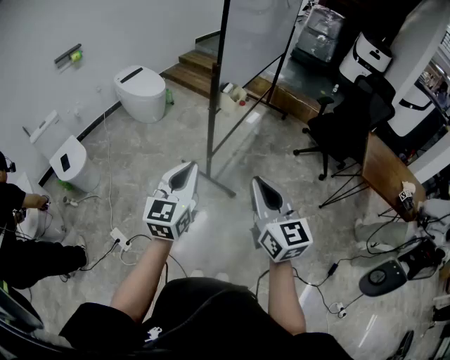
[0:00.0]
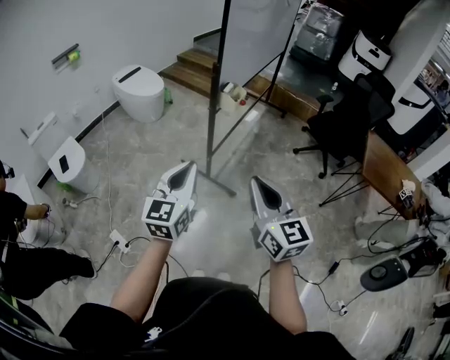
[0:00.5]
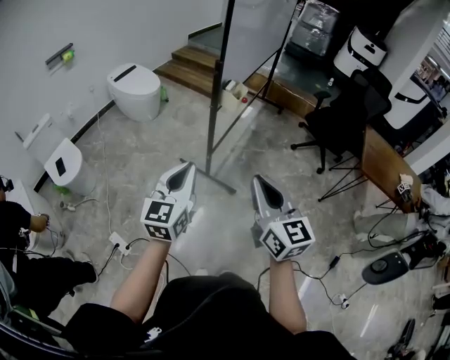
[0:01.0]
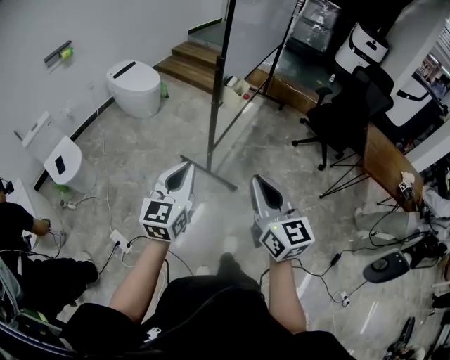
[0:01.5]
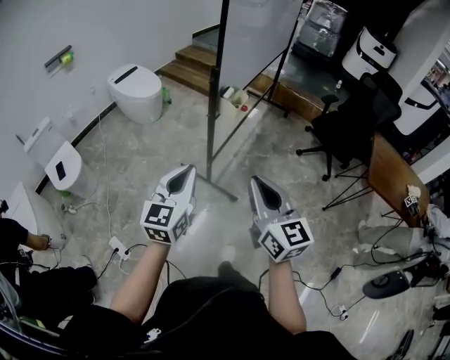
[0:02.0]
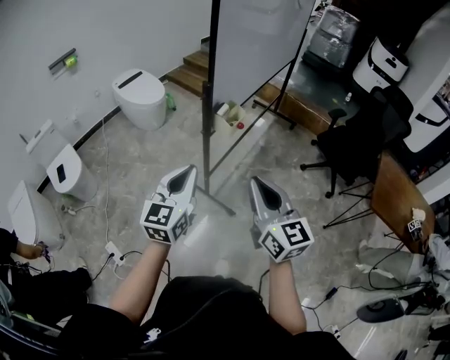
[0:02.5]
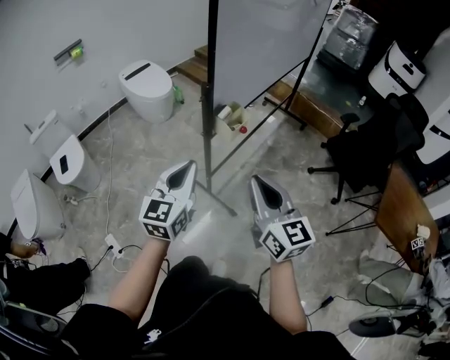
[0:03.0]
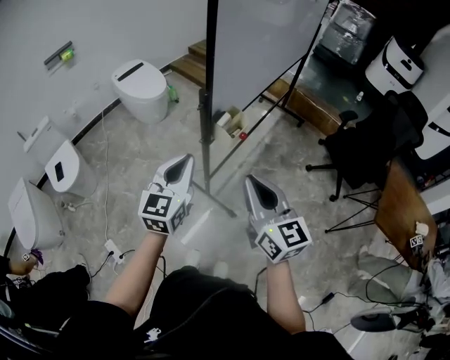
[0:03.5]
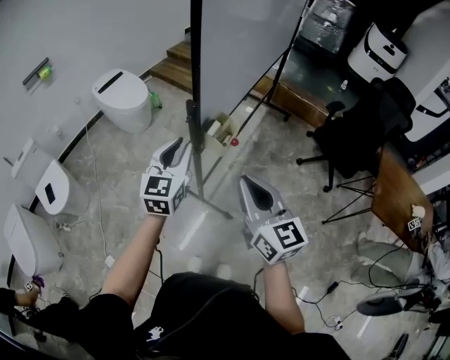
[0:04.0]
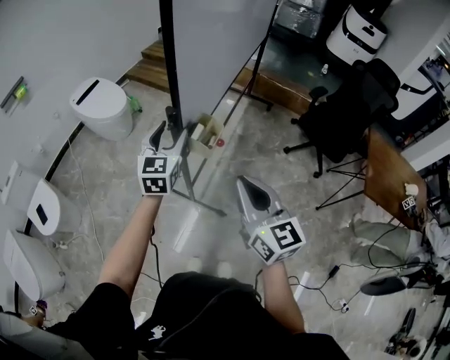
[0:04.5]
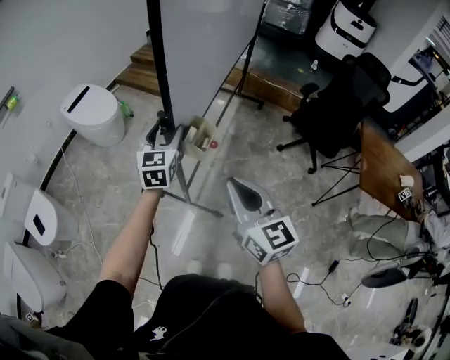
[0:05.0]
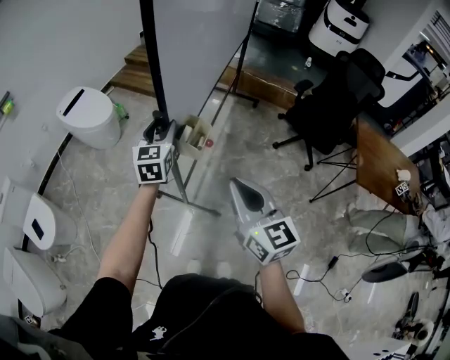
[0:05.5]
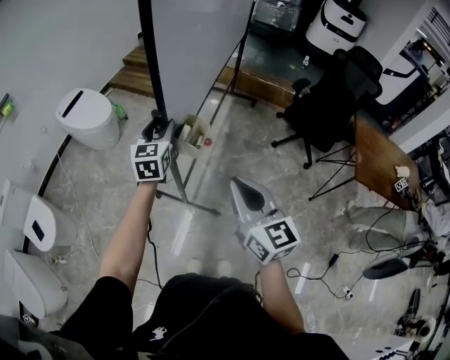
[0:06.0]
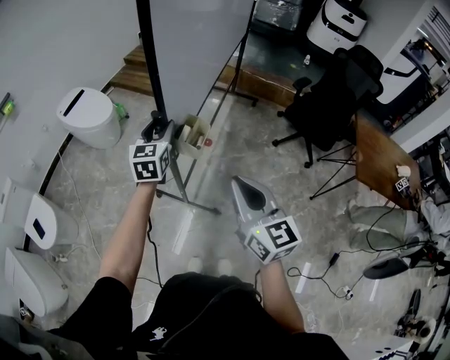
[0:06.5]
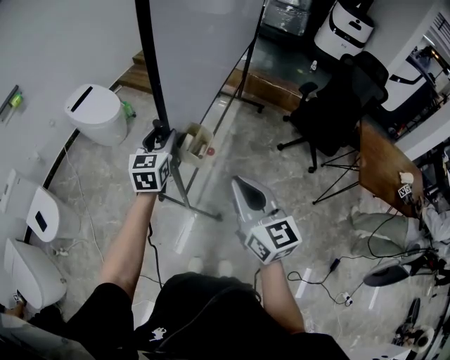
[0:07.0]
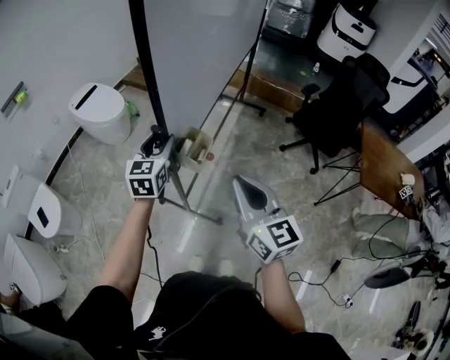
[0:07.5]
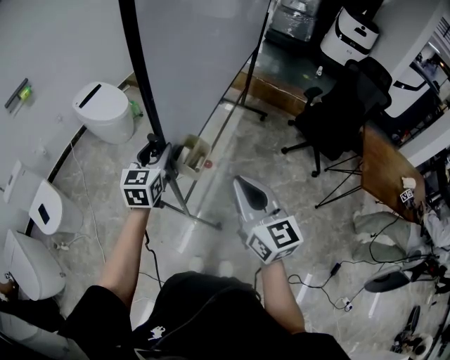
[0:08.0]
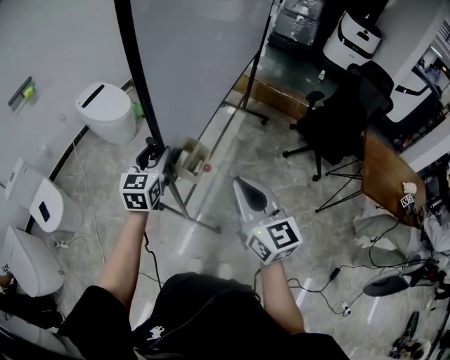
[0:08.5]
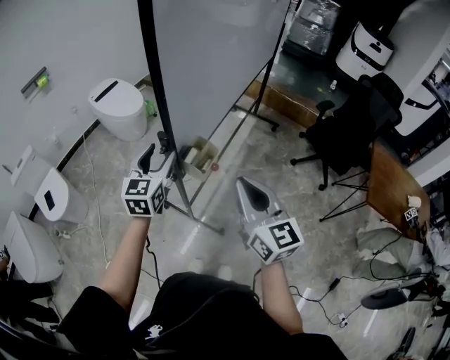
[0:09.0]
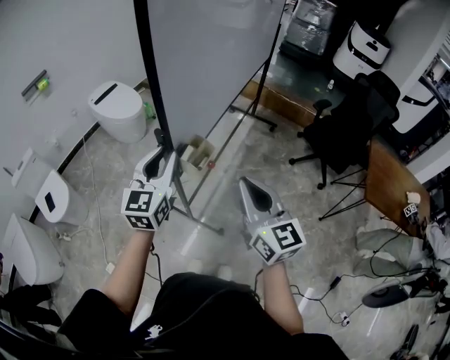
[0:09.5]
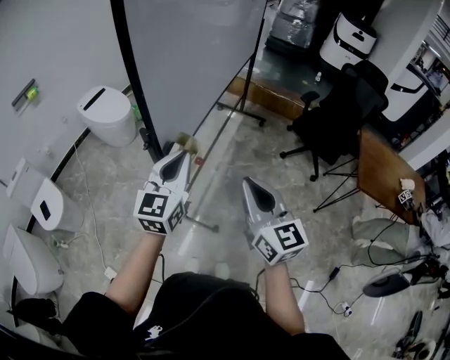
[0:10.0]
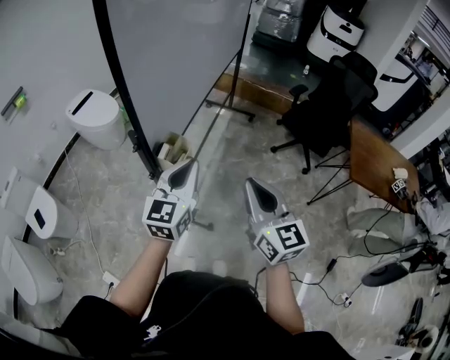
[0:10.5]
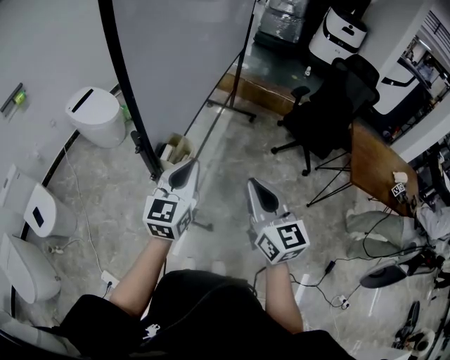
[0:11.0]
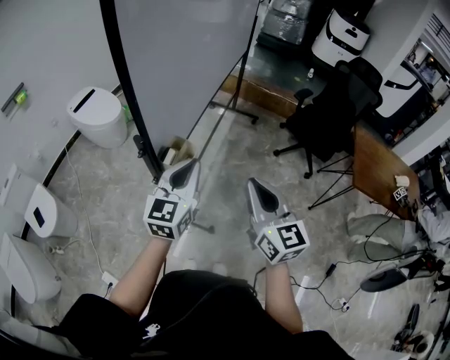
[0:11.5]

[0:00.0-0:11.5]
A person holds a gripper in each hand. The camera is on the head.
0:00.0 to 0:02.0: The grippers both shift forward by about 10 cm.
0:02.0 to 0:04.0: Both grippers move forward, some 25 cm.
0:04.0 to 0:06.0: The left gripper heads forward, covering approximately 10 cm, and opens.
0:06.0 to 0:07.5: The left gripper travels backward by roughly 10 cm.
0:07.5 to 0:09.5: The left gripper travels backward and upward by about 15 cm.
0:09.5 to 0:11.5: The left gripper is displaced to the right by about 10 cm, and closes. The right gripper heads to the right, covering about 5 cm.

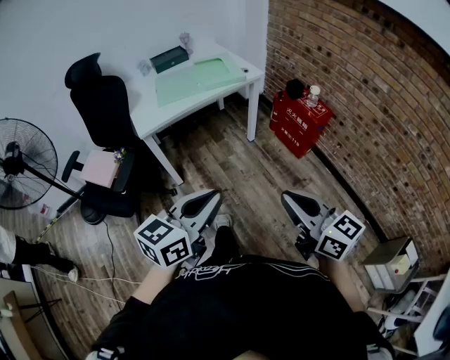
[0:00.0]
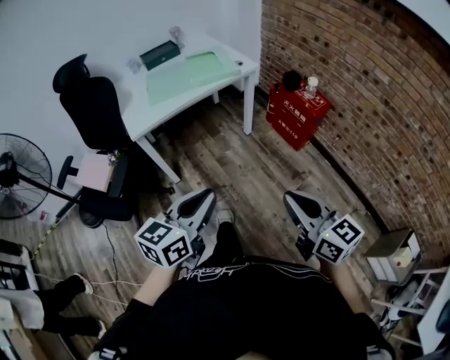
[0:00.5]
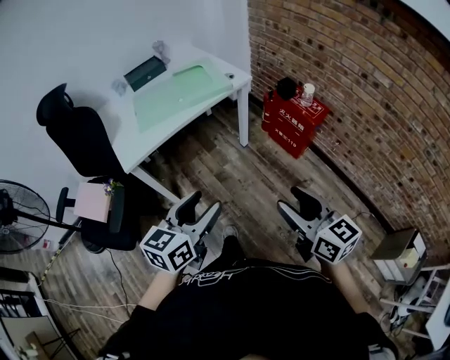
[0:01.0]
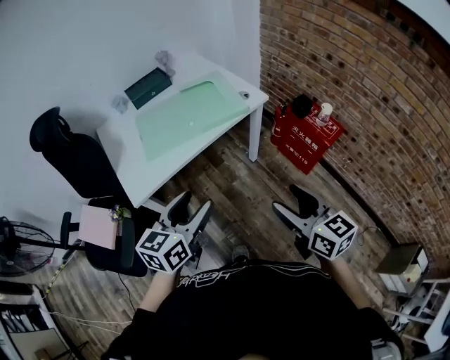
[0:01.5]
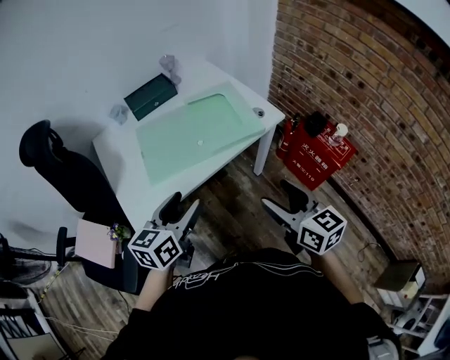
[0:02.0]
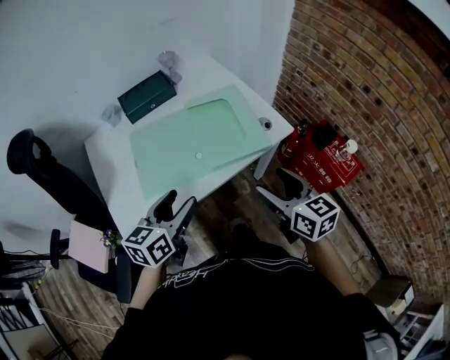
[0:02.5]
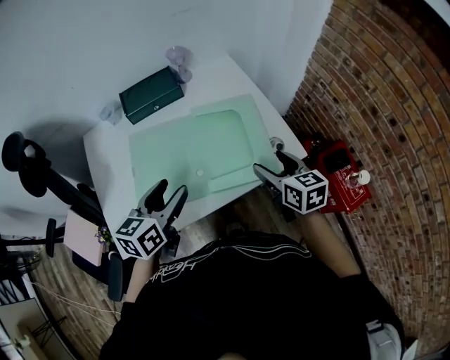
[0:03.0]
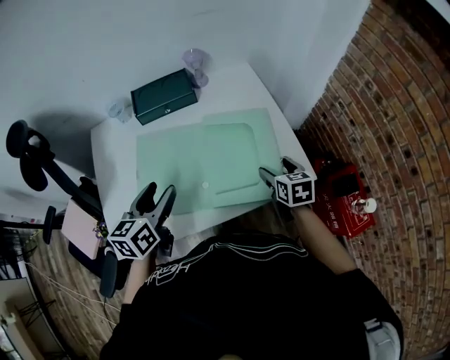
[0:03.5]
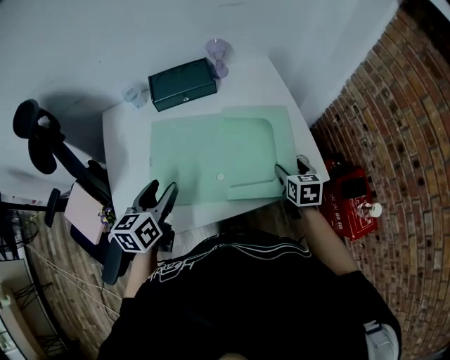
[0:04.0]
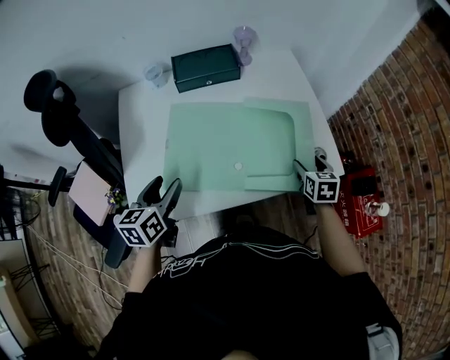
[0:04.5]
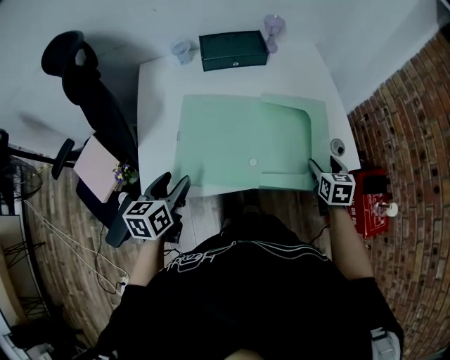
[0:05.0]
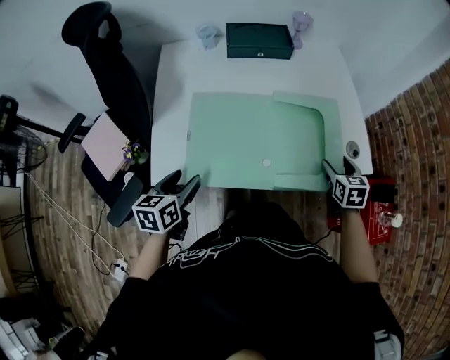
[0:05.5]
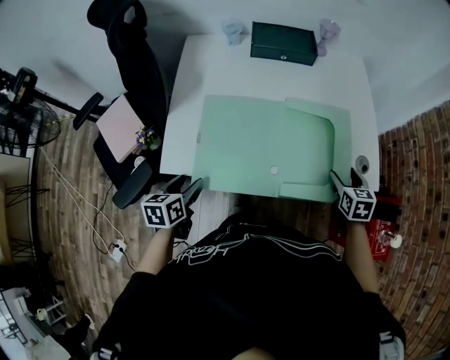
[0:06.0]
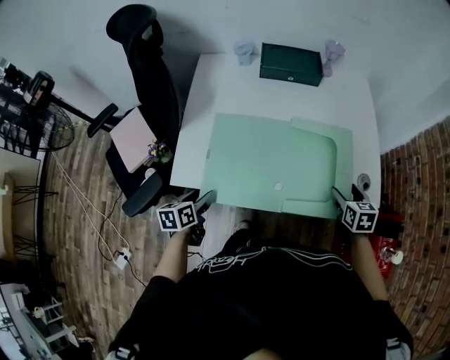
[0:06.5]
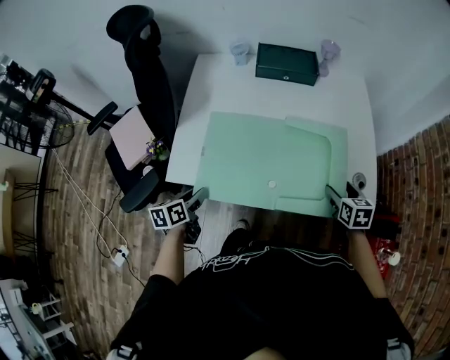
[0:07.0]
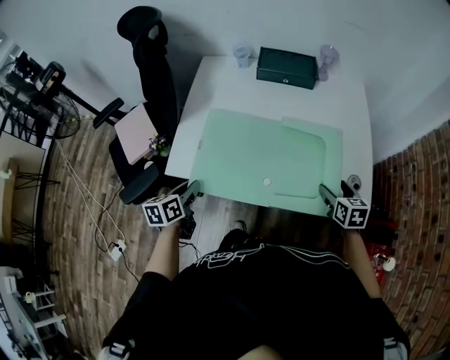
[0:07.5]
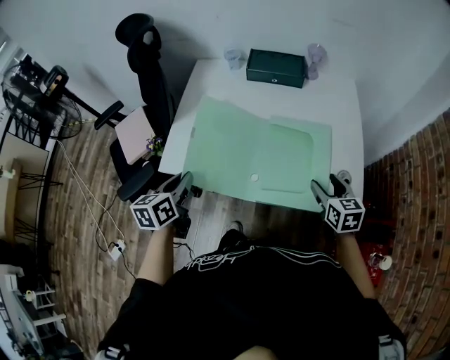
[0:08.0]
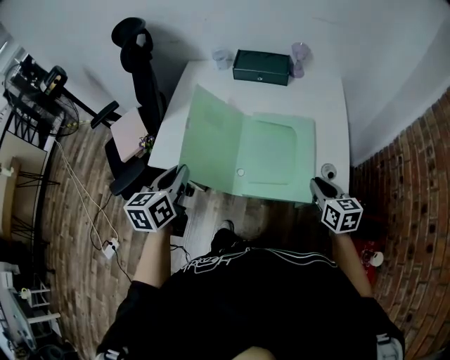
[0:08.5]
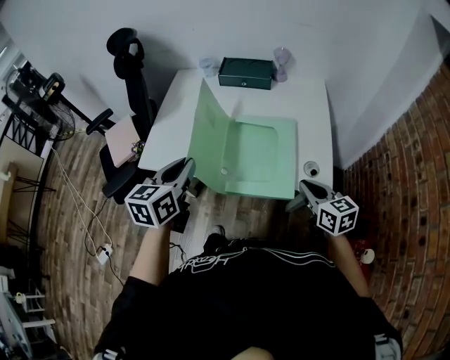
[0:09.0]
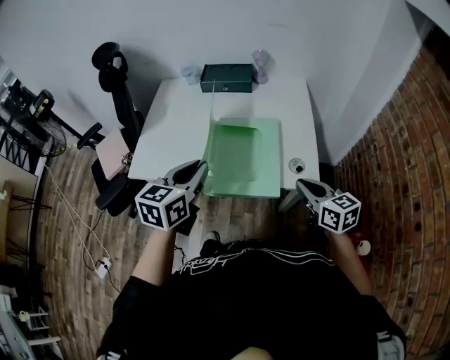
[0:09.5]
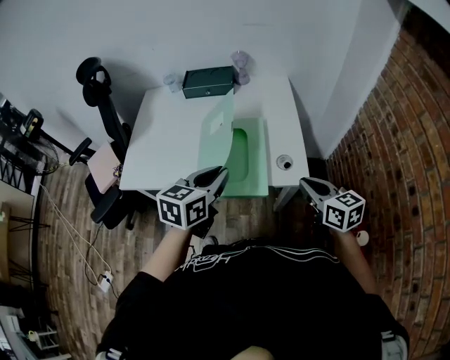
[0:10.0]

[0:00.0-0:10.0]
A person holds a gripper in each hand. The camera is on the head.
0:00.0 to 0:02.0: The pair of grippers is taken forward, some 50 cm. The right gripper opens. The left gripper opens.
0:02.0 to 0:04.0: The right gripper heads forward and downward, covering roughly 40 cm, and points its fingers about 30 degrees further downward; the left gripper shifts about 25 cm forward and to the left, and changes its angle by roughly 30 degrees.
0:04.0 to 0:06.0: The left gripper travels backward, downward and to the left by approximately 25 cm, and turns by roughly 20 degrees, while the right gripper moves backward, about 5 cm.
0:06.0 to 0:08.0: The right gripper is displaced upward by about 5 cm; the left gripper shifts some 15 cm upward and to the right, and closes its fingers.
0:08.0 to 0:10.0: The left gripper is displaced to the right by about 30 cm, and rotates some 30 degrees; the right gripper is displaced to the right, backward and upward by approximately 15 cm, and closes up.

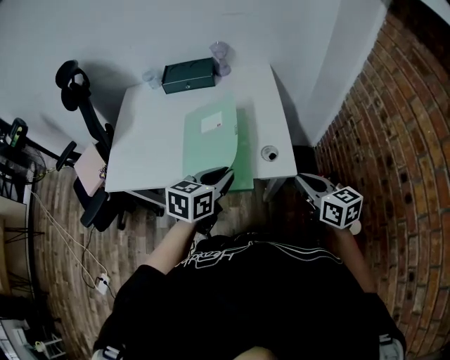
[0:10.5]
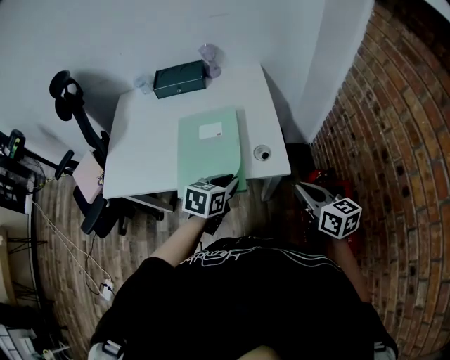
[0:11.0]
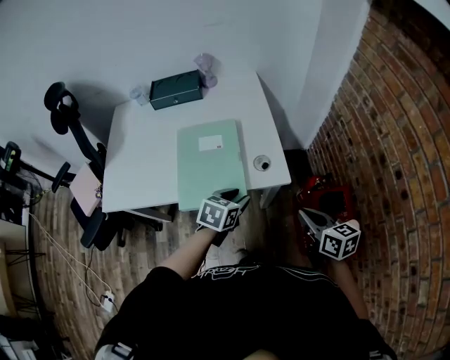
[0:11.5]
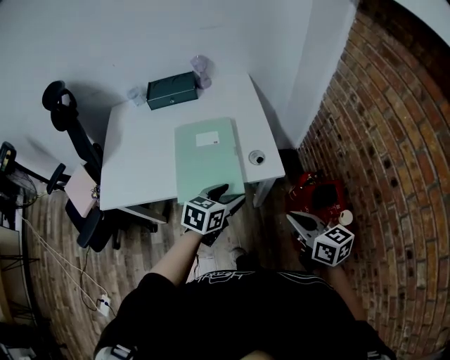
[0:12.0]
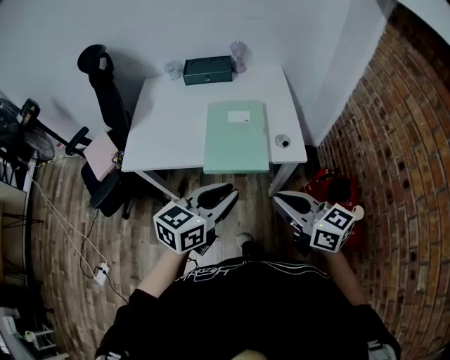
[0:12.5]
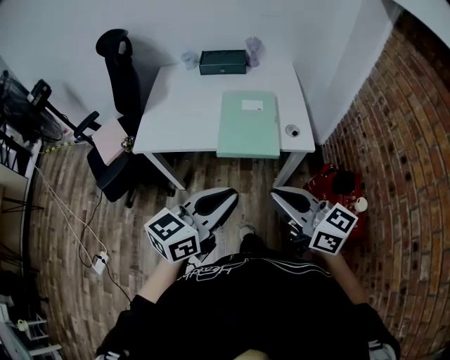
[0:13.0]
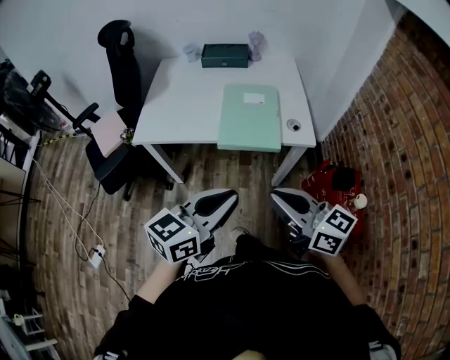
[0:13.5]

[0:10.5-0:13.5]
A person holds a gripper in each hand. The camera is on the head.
0:10.5 to 0:12.0: The right gripper is displaced backward by roughly 10 cm, while the left gripper moves downward, some 5 cm, and opens its fingers.
0:12.0 to 0:13.5: The right gripper goes some 25 cm to the left, upward and backward, and swivels roughly 30 degrees. Meanwhile the left gripper shifts roughly 30 cm backward, upward and to the left, swivels roughly 30 degrees, and closes its fingers.

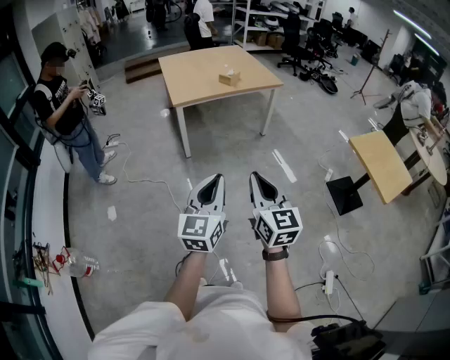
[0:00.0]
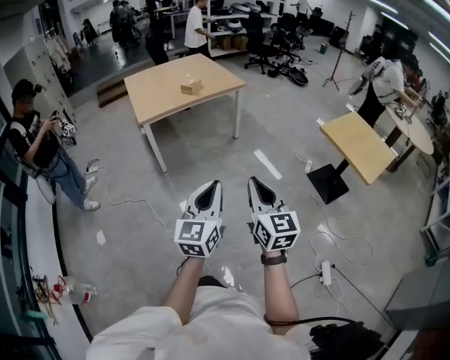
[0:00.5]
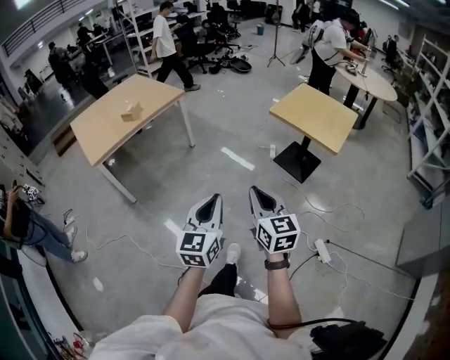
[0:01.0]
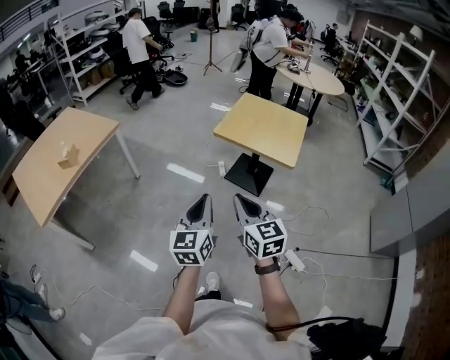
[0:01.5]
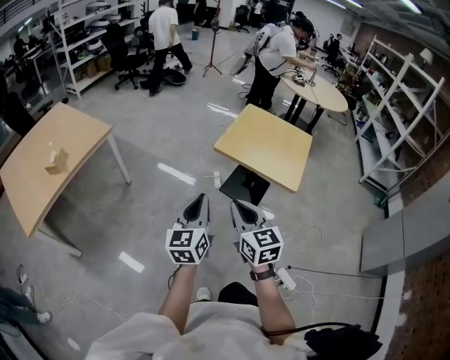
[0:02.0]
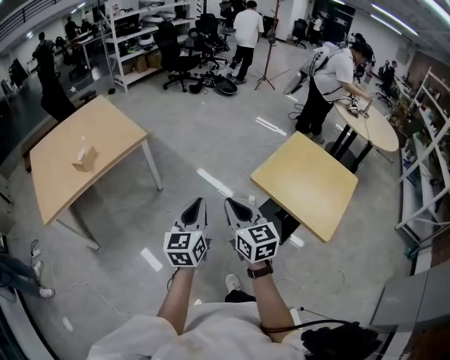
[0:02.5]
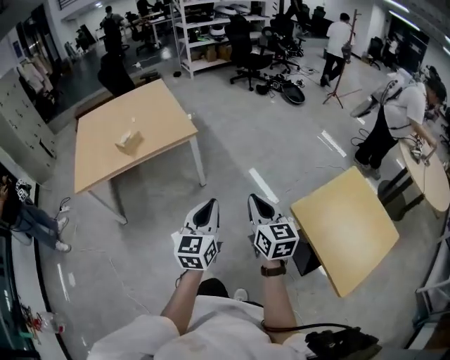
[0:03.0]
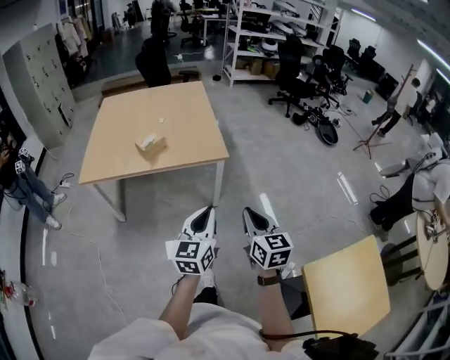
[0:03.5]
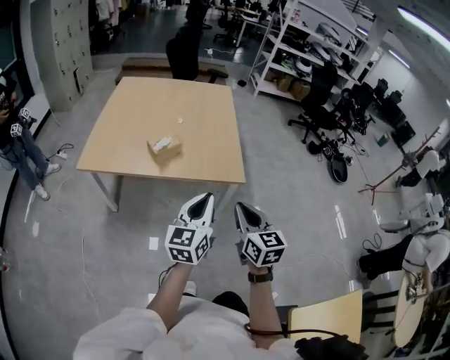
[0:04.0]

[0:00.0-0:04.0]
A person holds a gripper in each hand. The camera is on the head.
0:00.0 to 0:02.0: The pair of grippers is taken about 60 cm. The left gripper turns by some 40 degrees. Meanwhile the right gripper turns by approximately 40 degrees.
0:02.0 to 0:04.0: Both grippers are carried roughly 70 cm. The left gripper rotates approximately 50 degrees, while the right gripper rotates roughly 60 degrees.
